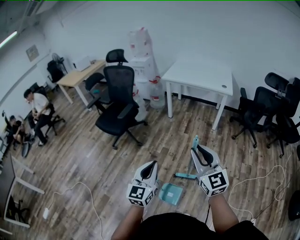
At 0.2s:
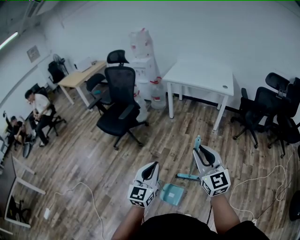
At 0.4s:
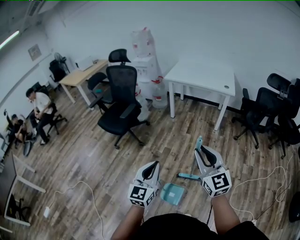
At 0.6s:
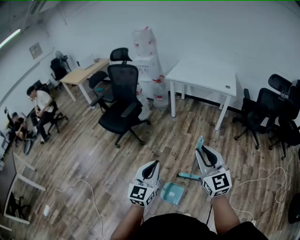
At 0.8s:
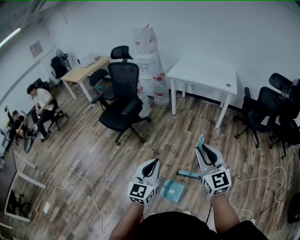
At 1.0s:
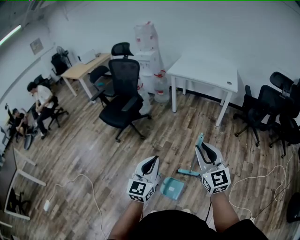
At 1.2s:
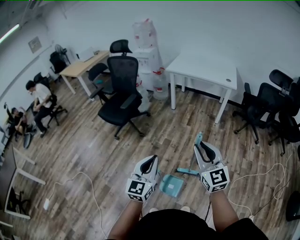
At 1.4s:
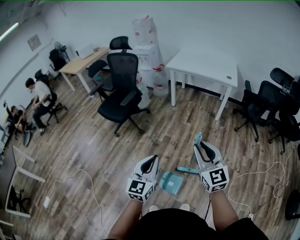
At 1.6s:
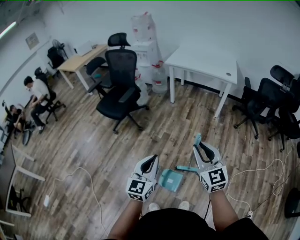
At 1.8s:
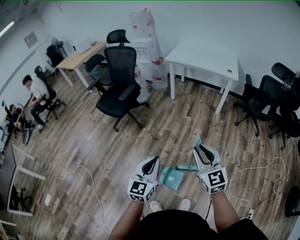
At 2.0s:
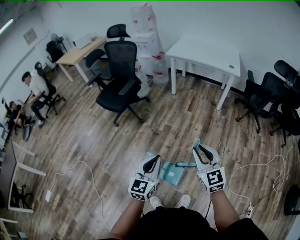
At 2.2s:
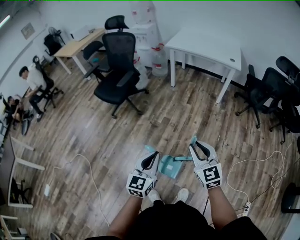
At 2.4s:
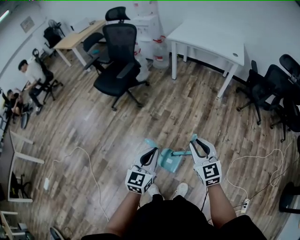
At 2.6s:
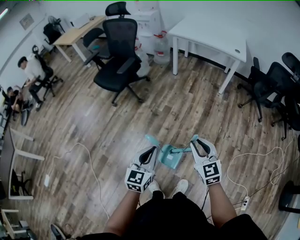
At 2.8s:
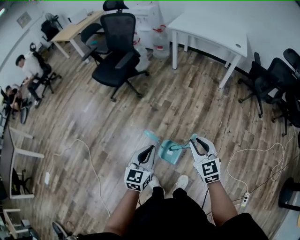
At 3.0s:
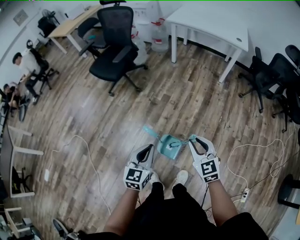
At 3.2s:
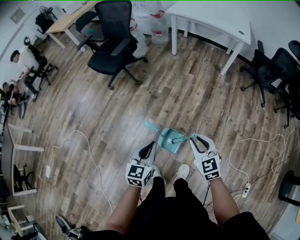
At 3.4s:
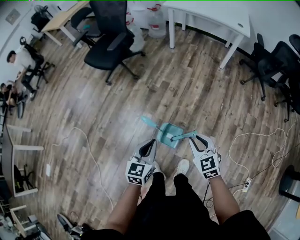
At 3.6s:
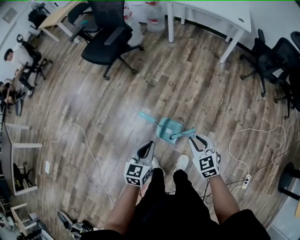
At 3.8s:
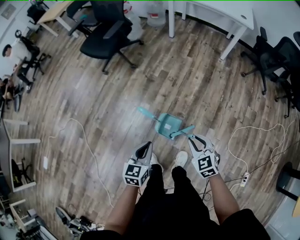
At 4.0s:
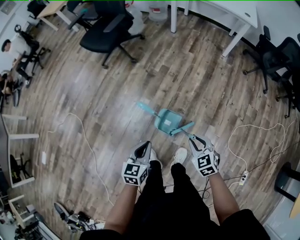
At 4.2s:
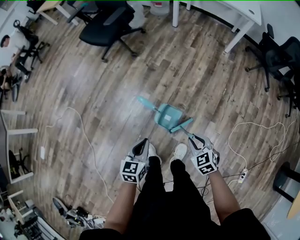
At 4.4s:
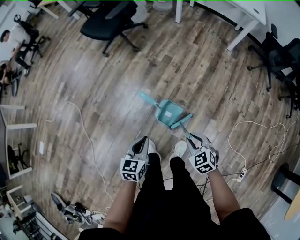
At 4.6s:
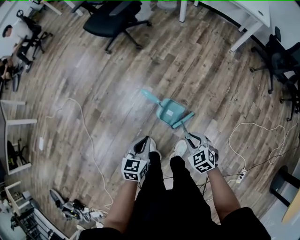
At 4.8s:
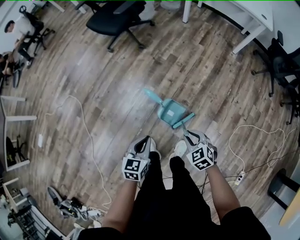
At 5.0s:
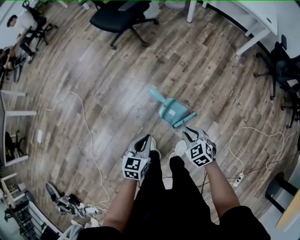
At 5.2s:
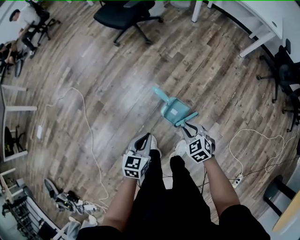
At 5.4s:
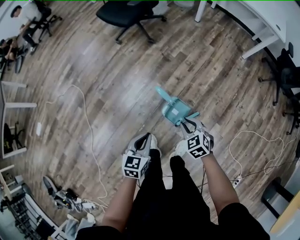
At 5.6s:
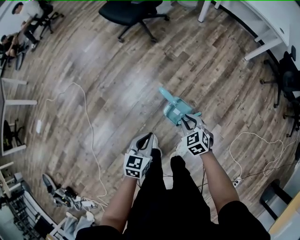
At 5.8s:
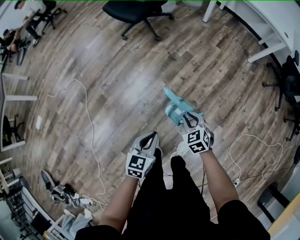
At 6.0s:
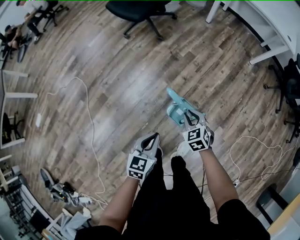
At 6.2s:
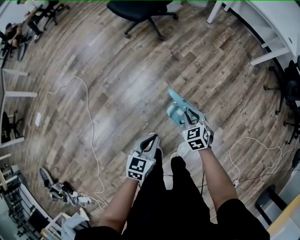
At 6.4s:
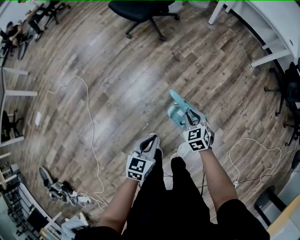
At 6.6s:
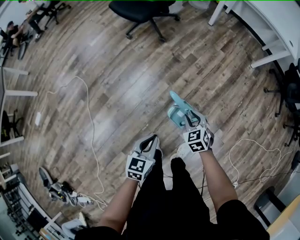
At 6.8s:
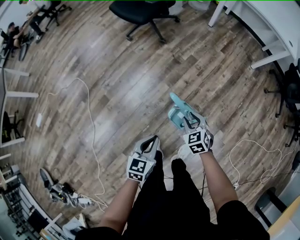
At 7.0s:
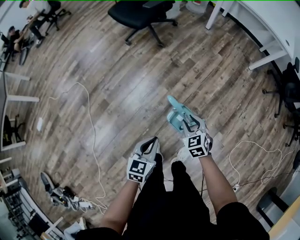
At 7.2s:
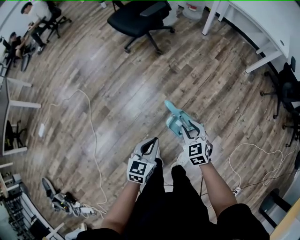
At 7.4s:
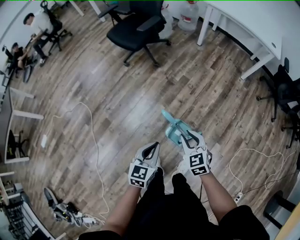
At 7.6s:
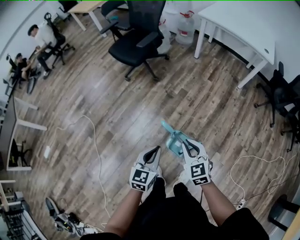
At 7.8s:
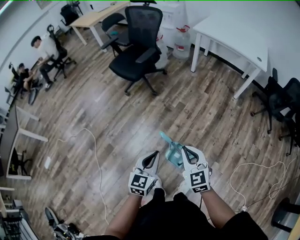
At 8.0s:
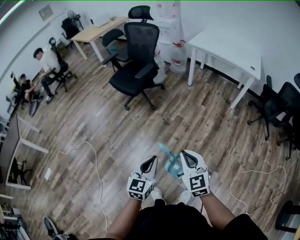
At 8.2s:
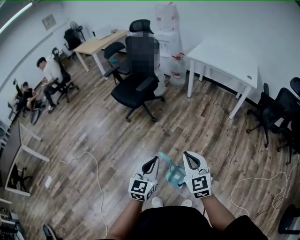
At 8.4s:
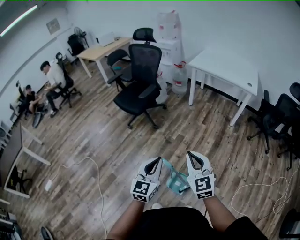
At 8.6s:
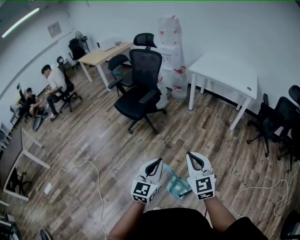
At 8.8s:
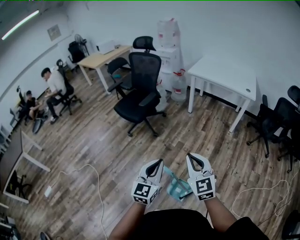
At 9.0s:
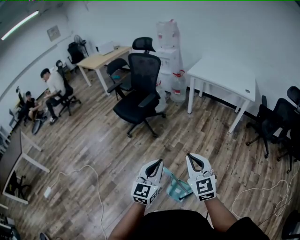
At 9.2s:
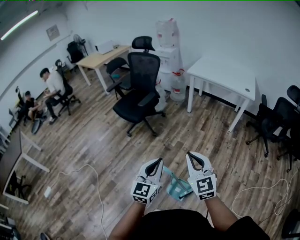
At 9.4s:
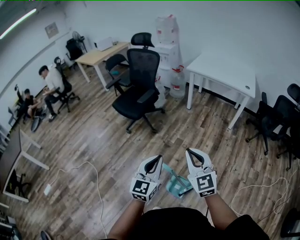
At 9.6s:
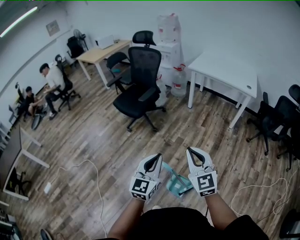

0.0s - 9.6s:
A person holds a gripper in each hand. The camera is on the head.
0.0s - 1.6s: The right gripper is displaced downward by approximately 5 cm.
1.6s - 3.2s: The grippers both shift downward by roughly 15 cm. The left gripper swivels roughly 20 degrees, while the right gripper turns by about 20 degrees.
3.2s - 4.8s: The two grippers go approximately 15 cm downward and backward. The right gripper swivels about 30 degrees.
4.8s - 6.4s: The right gripper is displaced forward and to the left by approximately 15 cm.
6.4s - 8.0s: The left gripper is displaced upward and forward by about 20 cm, and rotates approximately 20 degrees. Meanwhile the right gripper moves upward, approximately 30 cm, and points its fingers about 30 degrees further upward.
8.0s - 9.6s: The left gripper is displaced upward and forward by roughly 10 cm. Meanwhile the right gripper is displaced upward by about 10 cm.

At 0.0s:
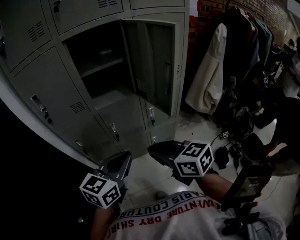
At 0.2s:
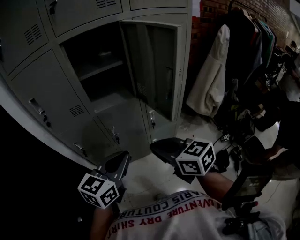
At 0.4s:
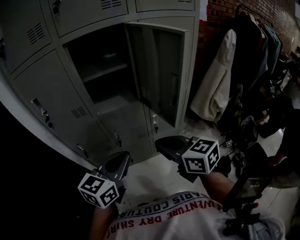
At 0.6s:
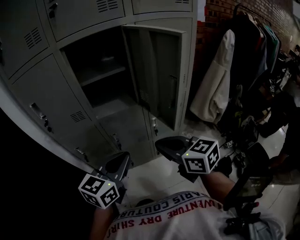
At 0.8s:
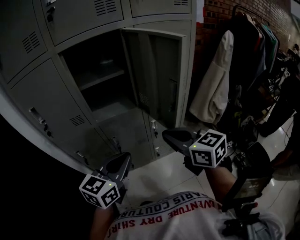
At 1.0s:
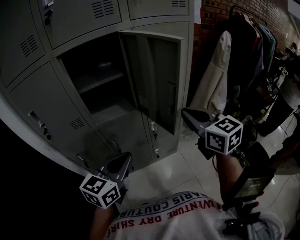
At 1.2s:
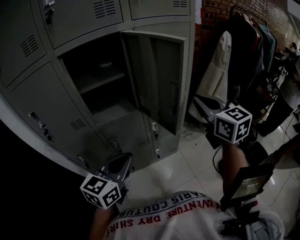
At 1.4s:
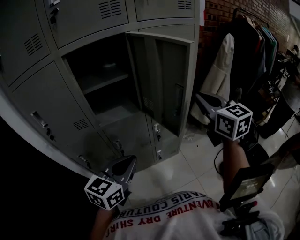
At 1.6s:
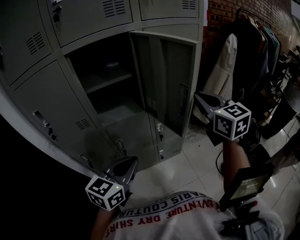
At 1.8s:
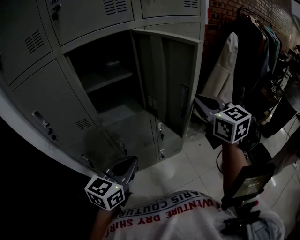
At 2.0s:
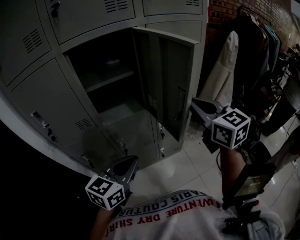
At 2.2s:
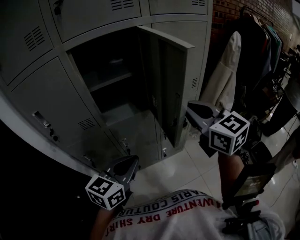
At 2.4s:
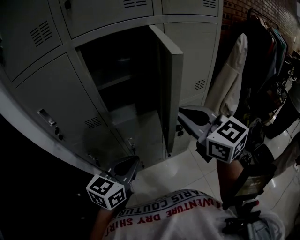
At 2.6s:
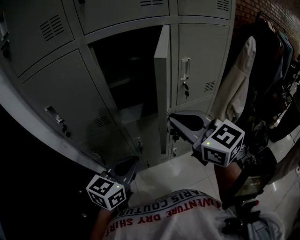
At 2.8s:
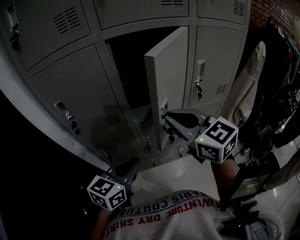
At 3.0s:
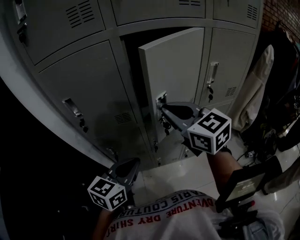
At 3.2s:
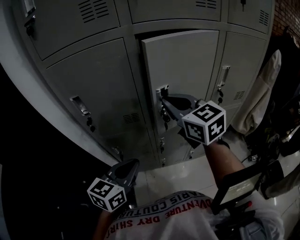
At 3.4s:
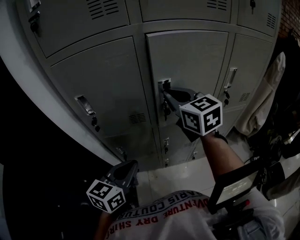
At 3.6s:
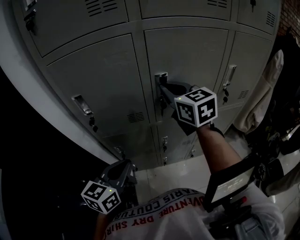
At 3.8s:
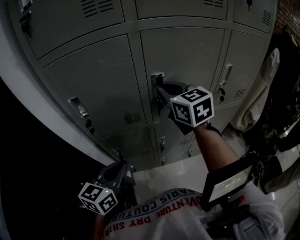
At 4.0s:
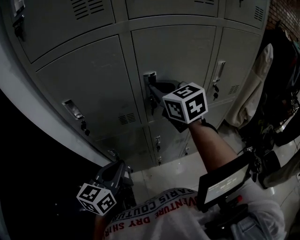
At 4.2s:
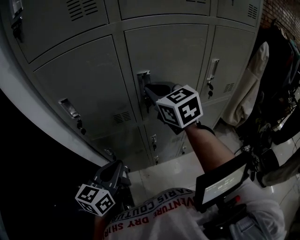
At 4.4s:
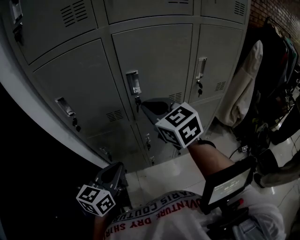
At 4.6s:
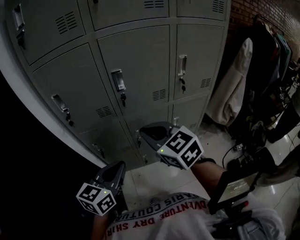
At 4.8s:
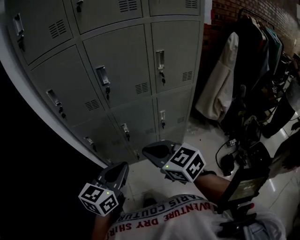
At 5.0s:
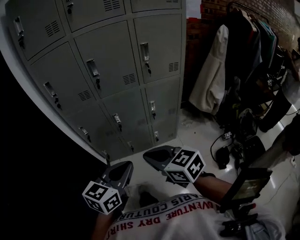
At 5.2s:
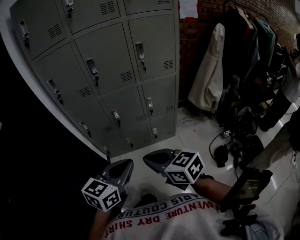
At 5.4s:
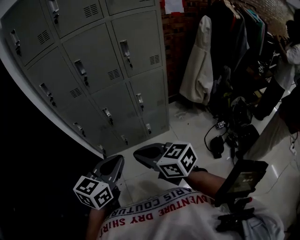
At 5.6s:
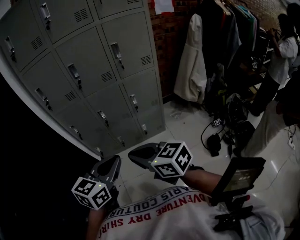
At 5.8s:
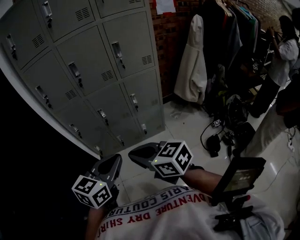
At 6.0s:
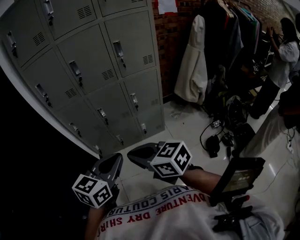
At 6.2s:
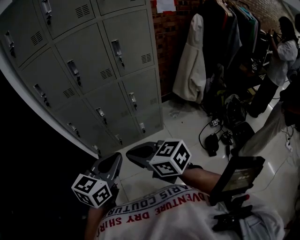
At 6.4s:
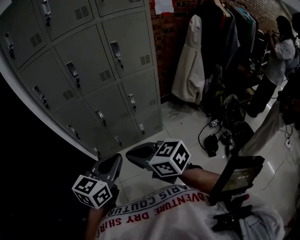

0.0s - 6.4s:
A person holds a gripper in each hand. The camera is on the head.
0.0s - 1.6s: The right gripper shifts about 30 cm forward, to the right and upward, and rotates approximately 40 degrees; the left gripper is displaced forward by approximately 10 cm.
1.6s - 3.2s: The right gripper is displaced to the left by about 35 cm, and swivels about 20 degrees. Meanwhile the left gripper is displaced to the left by roughly 20 cm.
3.2s - 4.8s: The right gripper heads backward, covering some 30 cm. The left gripper is displaced backward and to the right by roughly 20 cm.
4.8s - 6.4s: The right gripper goes approximately 20 cm backward. Meanwhile the left gripper is displaced backward and to the right by approximately 20 cm.

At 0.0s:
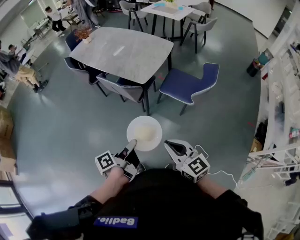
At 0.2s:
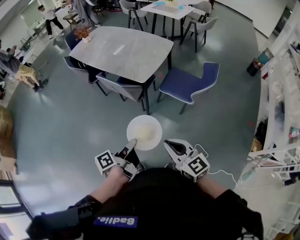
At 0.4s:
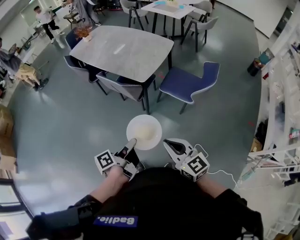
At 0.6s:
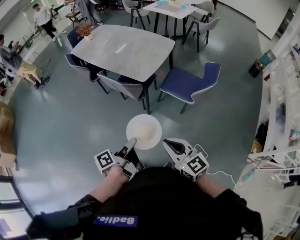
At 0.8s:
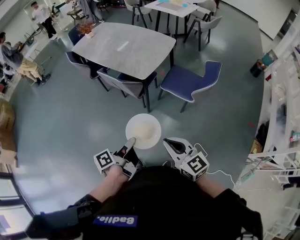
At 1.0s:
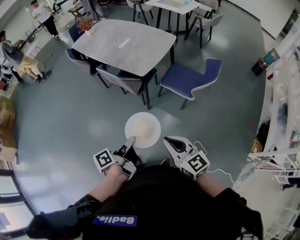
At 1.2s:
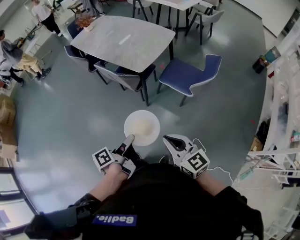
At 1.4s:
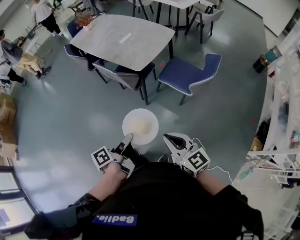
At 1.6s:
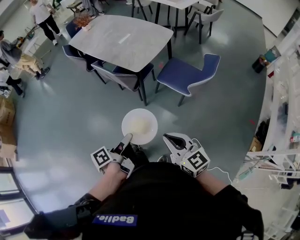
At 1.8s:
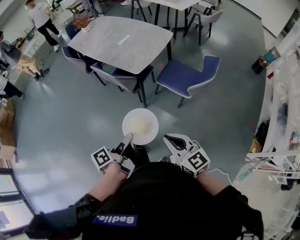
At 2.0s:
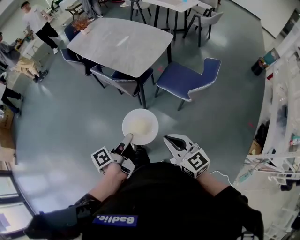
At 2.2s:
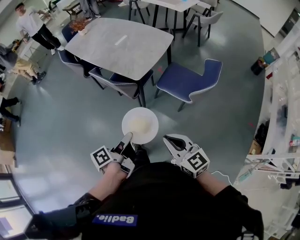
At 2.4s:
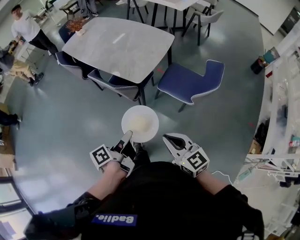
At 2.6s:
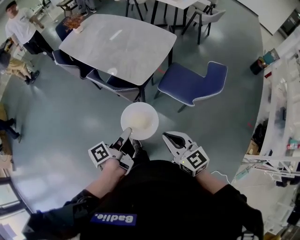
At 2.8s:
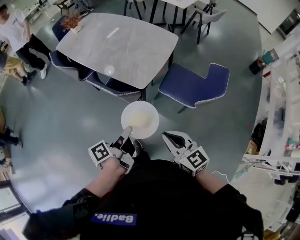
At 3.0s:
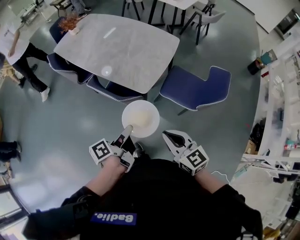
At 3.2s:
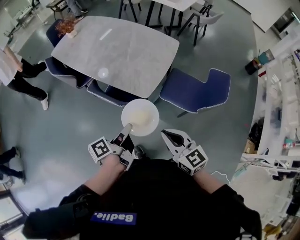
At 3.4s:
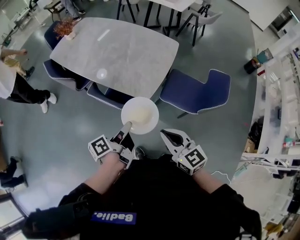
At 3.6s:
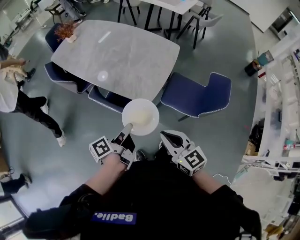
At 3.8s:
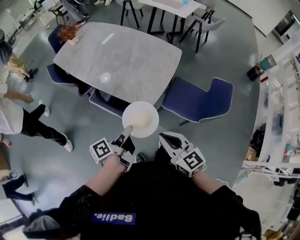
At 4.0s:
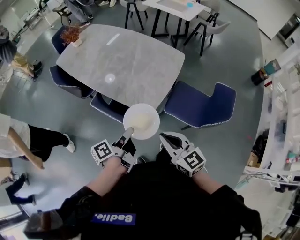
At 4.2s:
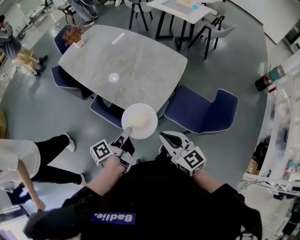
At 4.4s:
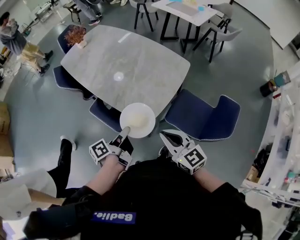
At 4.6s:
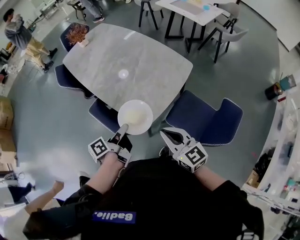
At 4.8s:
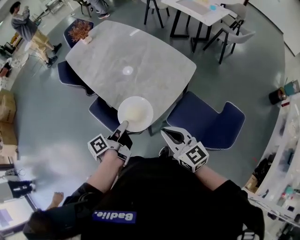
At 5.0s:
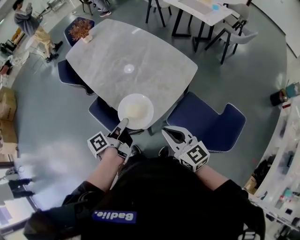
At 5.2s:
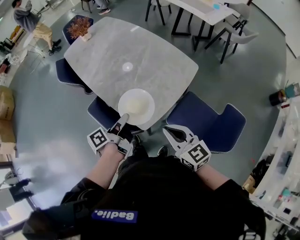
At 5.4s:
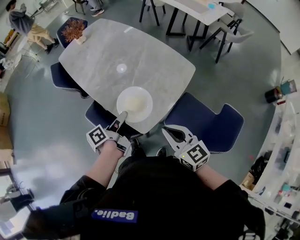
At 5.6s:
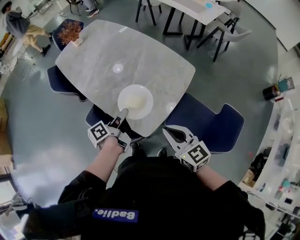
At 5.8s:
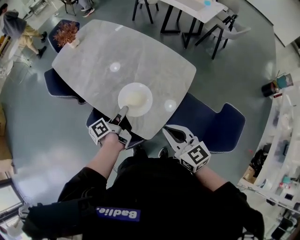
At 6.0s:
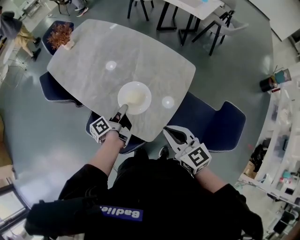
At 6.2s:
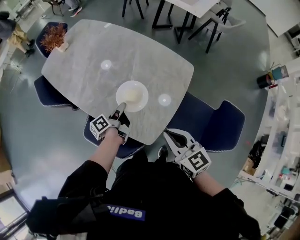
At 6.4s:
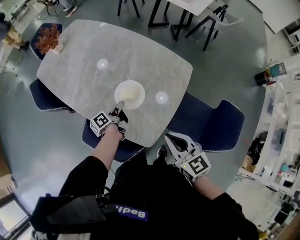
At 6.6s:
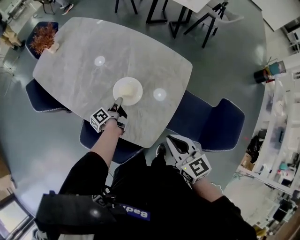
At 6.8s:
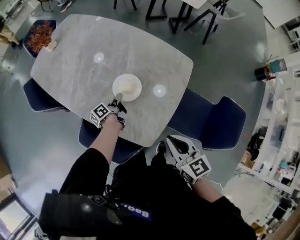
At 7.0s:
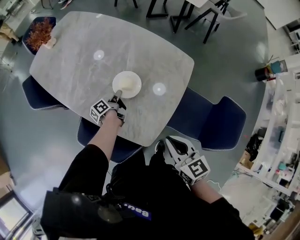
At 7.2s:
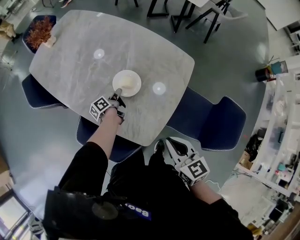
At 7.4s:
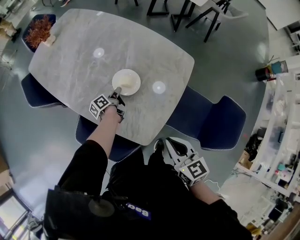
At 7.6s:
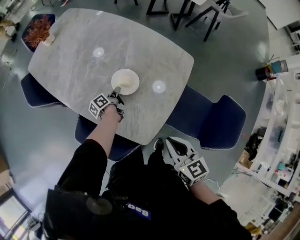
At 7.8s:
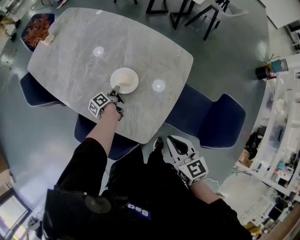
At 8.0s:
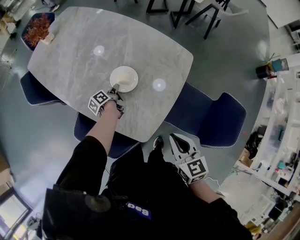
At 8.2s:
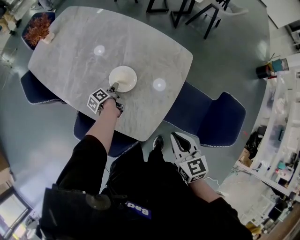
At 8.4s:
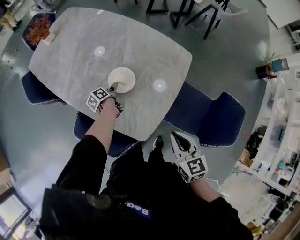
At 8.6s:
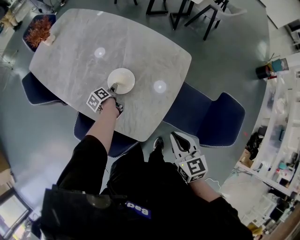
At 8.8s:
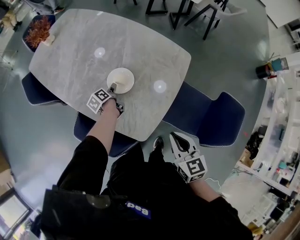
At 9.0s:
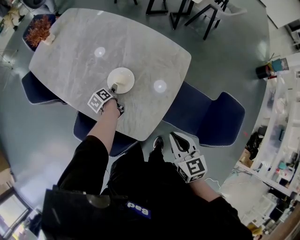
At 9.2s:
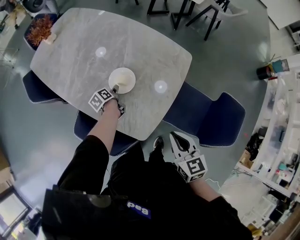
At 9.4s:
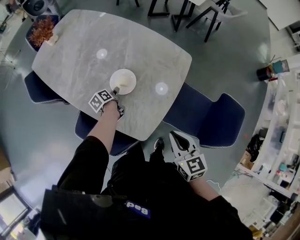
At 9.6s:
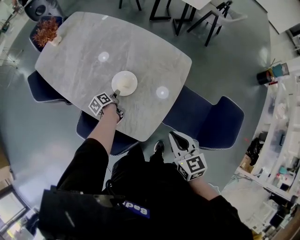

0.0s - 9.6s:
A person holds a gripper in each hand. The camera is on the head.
0.0s - 1.6s: The right gripper changes place by roughly 5 cm.
1.6s - 3.2s: The right gripper changes place by roughly 30 cm.
3.2s - 4.8s: The right gripper ends up roughly 25 cm from where it was.
4.8s - 6.4s: The right gripper ends up about 15 cm from where it was.
6.4s - 8.0s: The right gripper heads downward, covering approximately 5 cm.
